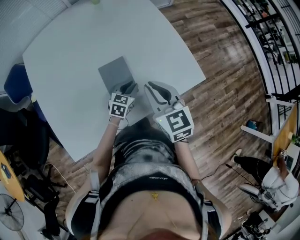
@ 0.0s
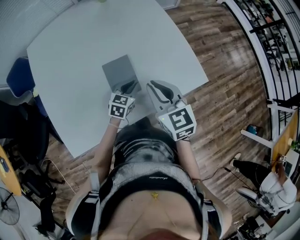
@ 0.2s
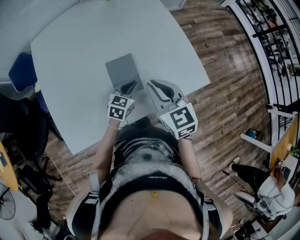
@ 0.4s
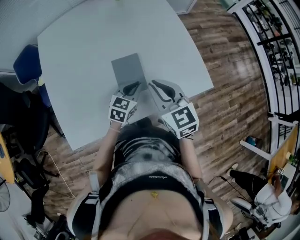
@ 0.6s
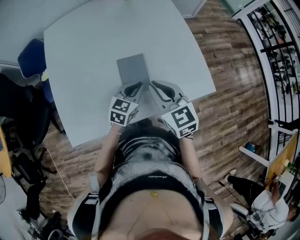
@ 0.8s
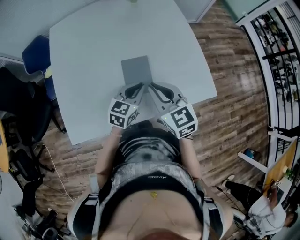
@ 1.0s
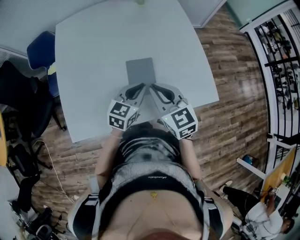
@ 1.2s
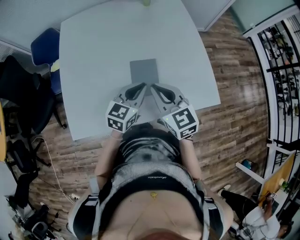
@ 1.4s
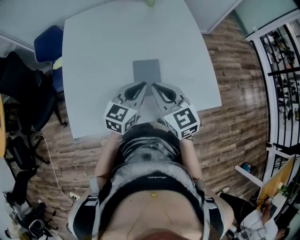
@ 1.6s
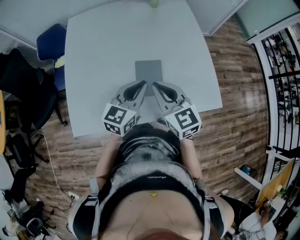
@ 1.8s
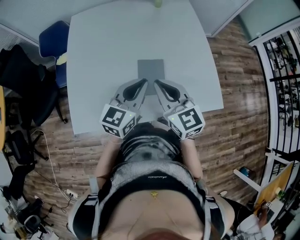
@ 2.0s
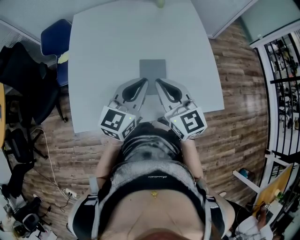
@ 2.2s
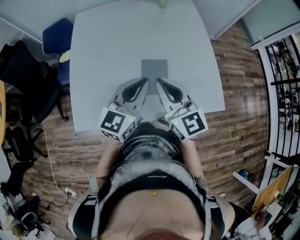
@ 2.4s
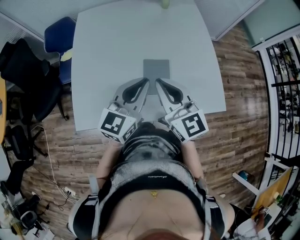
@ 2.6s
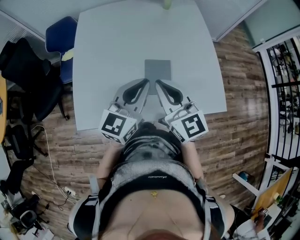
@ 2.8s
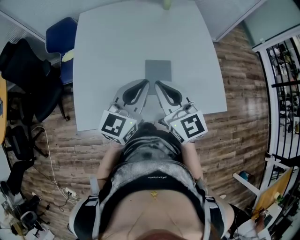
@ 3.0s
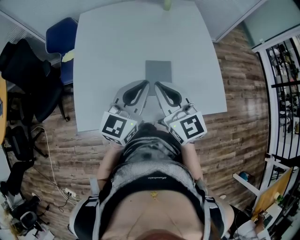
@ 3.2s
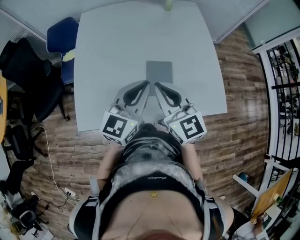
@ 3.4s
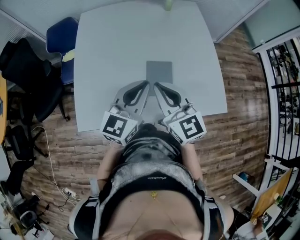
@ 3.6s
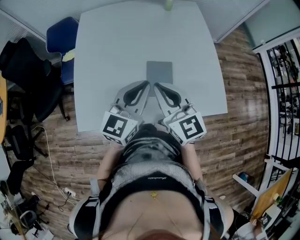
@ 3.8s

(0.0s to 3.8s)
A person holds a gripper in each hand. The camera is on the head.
0.0s - 1.2s: The left gripper shifts about 15 cm upward and to the left, and turns by some 20 degrees. Meanwhile the right gripper heads to the left, covering some 10 cm.
1.2s - 2.6s: The left gripper travels upward and to the left by roughly 15 cm, and turns by about 20 degrees. Meanwhile the right gripper is displaced upward and to the left by approximately 10 cm.
2.6s - 3.8s: There are only small adjustments of the grippers.

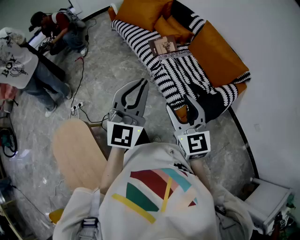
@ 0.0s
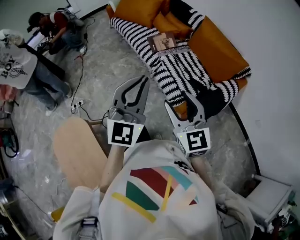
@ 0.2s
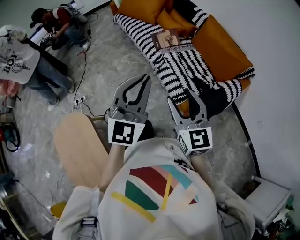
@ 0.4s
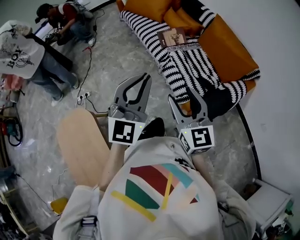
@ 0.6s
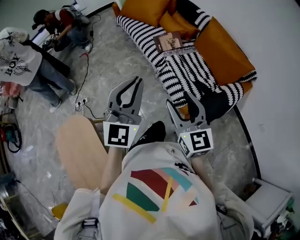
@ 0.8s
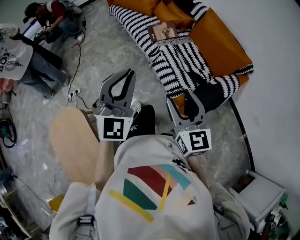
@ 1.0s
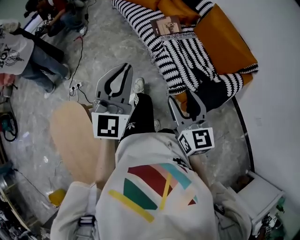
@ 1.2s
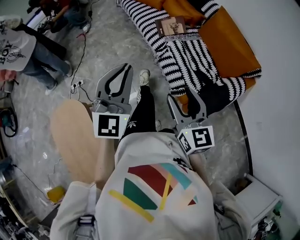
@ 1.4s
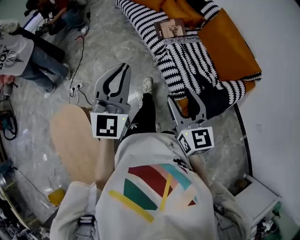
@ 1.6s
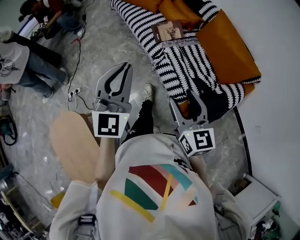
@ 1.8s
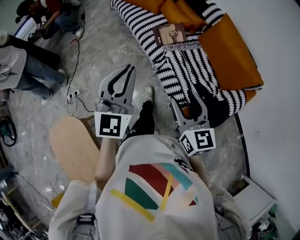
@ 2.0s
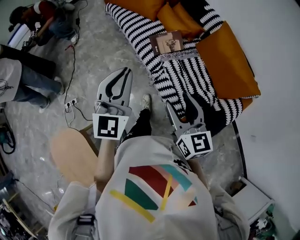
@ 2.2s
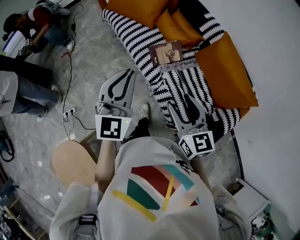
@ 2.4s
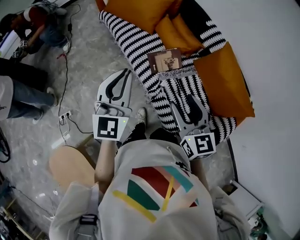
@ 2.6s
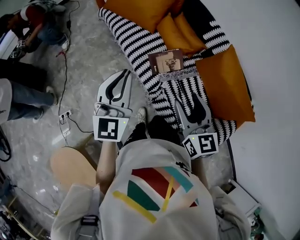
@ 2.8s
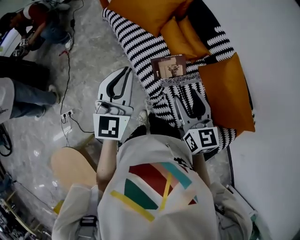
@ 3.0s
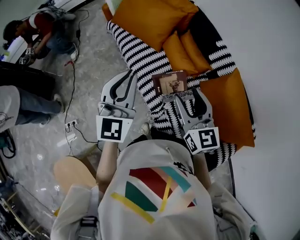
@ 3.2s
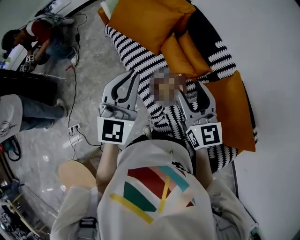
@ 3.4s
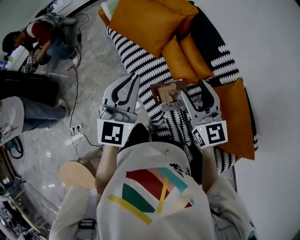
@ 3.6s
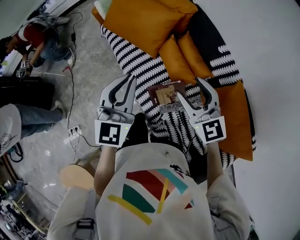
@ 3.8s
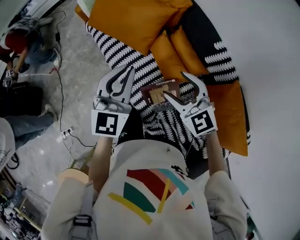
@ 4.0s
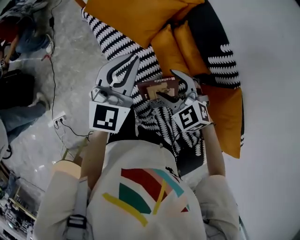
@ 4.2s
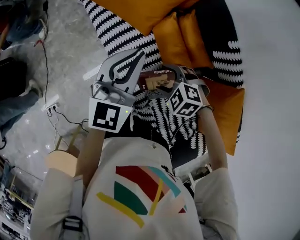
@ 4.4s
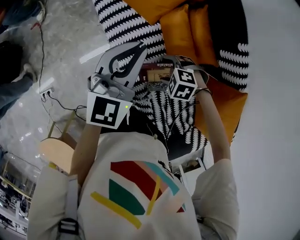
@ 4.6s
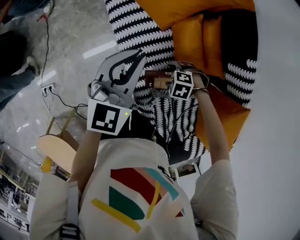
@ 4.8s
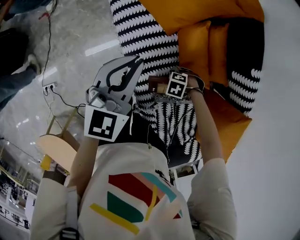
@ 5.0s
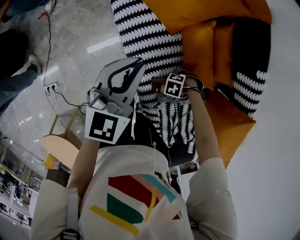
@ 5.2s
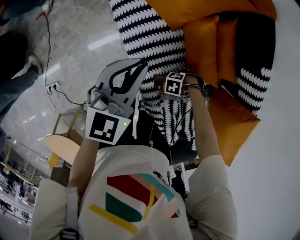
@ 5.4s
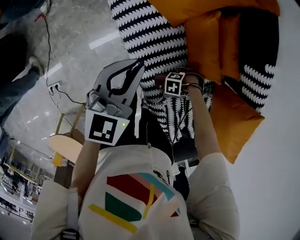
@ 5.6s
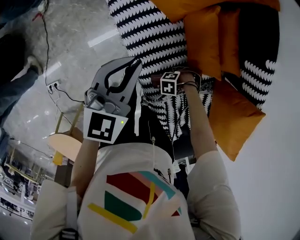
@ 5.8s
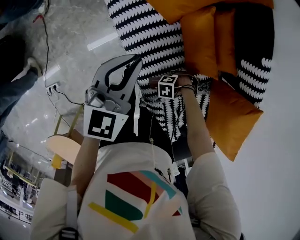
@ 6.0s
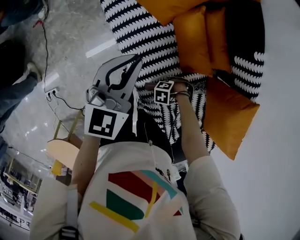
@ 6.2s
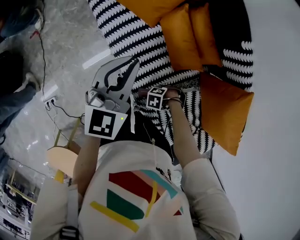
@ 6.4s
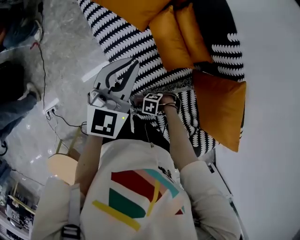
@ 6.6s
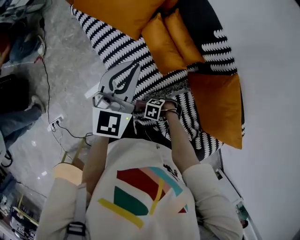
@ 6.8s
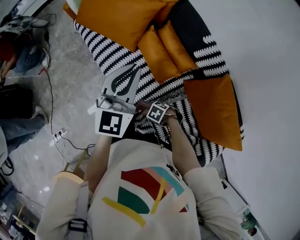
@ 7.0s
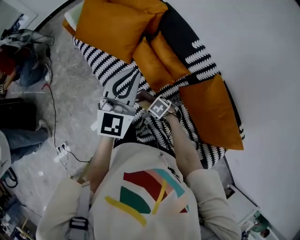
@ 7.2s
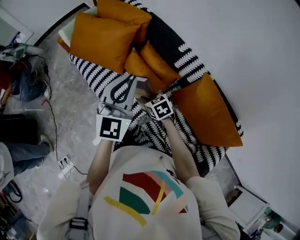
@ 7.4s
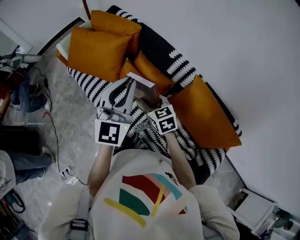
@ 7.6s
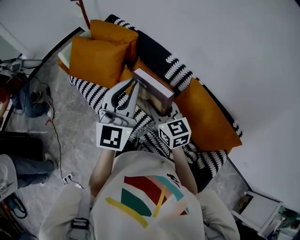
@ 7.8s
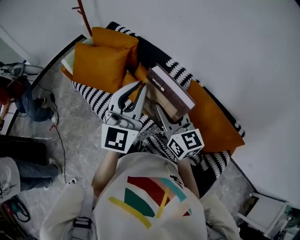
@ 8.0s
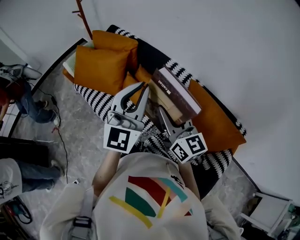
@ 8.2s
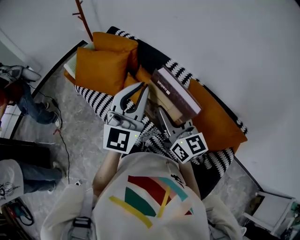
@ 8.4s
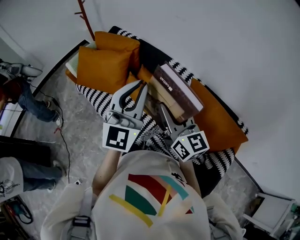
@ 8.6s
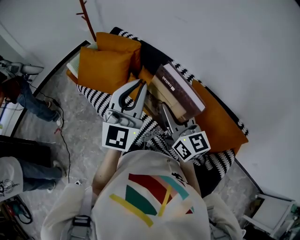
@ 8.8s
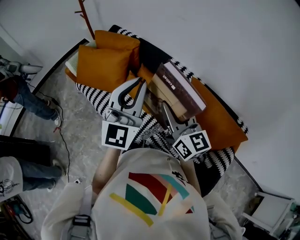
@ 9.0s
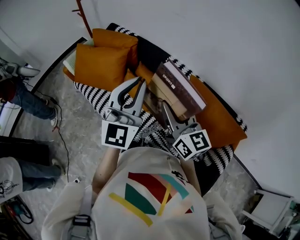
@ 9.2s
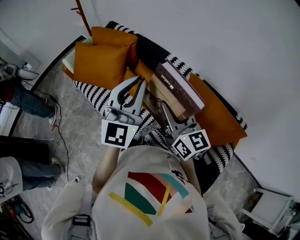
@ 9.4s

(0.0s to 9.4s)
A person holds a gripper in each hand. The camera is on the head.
0.0s - 1.6s: Both grippers travel together forward, roughly 5 cm.
1.6s - 3.2s: Both grippers are carried forward, roughly 50 cm.
3.2s - 4.8s: The left gripper shifts by approximately 30 cm, and rotates about 20 degrees. The right gripper is displaced downward by roughly 40 cm, and points its fingers some 60 degrees further downward.
4.8s - 6.2s: The right gripper moves about 15 cm, rotates approximately 20 degrees, and closes its fingers.
6.2s - 7.8s: The left gripper is displaced upward by roughly 30 cm, and angles its fingers upward, by roughly 30 degrees; the right gripper shifts roughly 50 cm upward, and tips its fingers upward by about 50 degrees.
7.8s - 9.4s: The right gripper is displaced upward, backward and to the right by about 10 cm, and changes its angle by roughly 20 degrees, while the left gripper moves about 5 cm.

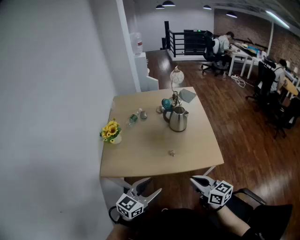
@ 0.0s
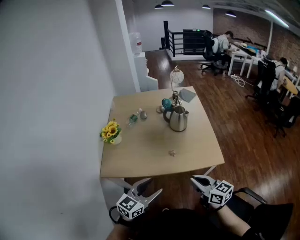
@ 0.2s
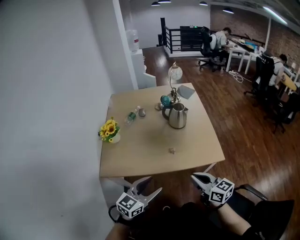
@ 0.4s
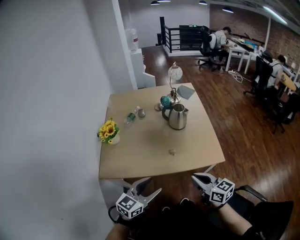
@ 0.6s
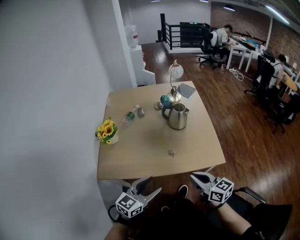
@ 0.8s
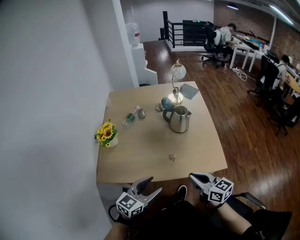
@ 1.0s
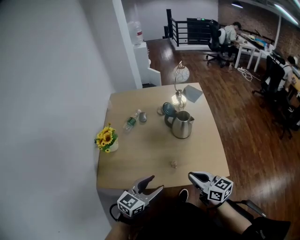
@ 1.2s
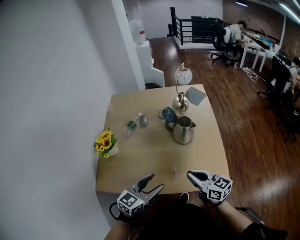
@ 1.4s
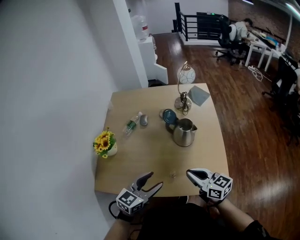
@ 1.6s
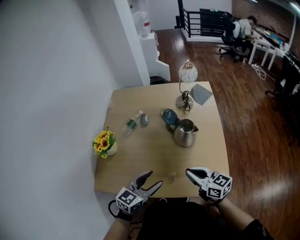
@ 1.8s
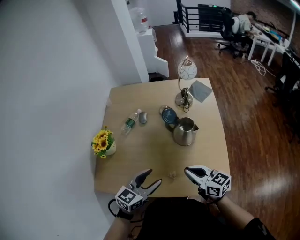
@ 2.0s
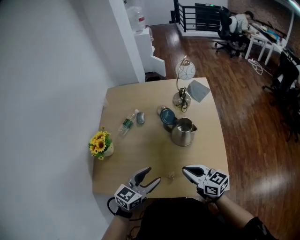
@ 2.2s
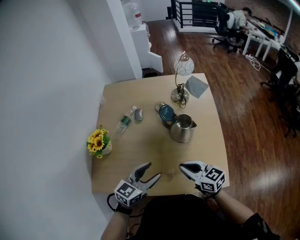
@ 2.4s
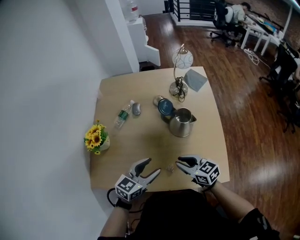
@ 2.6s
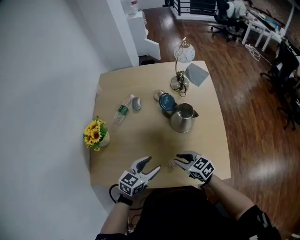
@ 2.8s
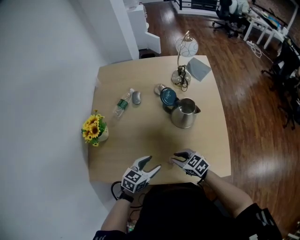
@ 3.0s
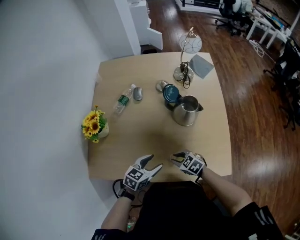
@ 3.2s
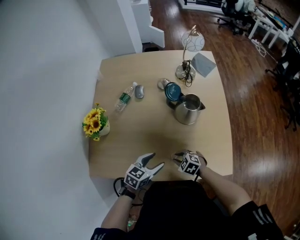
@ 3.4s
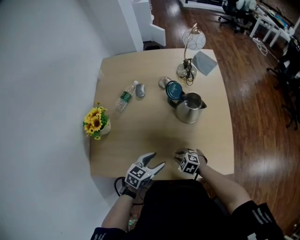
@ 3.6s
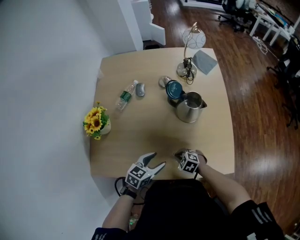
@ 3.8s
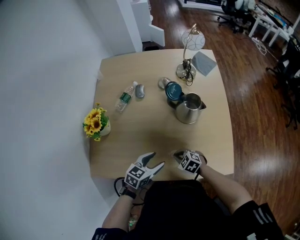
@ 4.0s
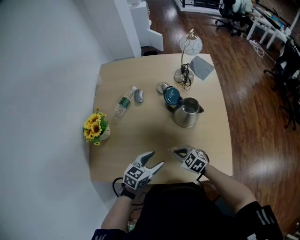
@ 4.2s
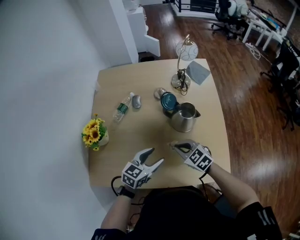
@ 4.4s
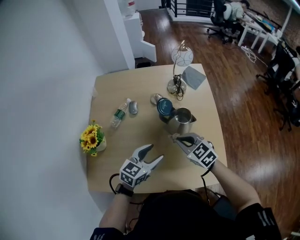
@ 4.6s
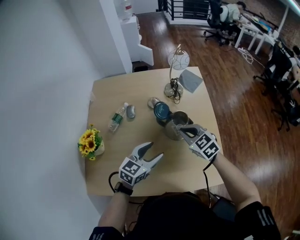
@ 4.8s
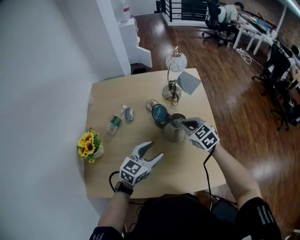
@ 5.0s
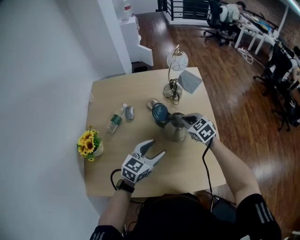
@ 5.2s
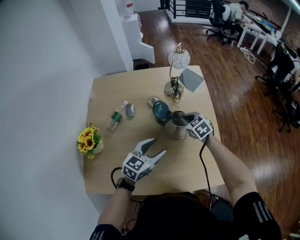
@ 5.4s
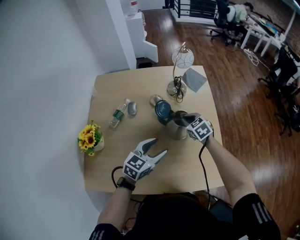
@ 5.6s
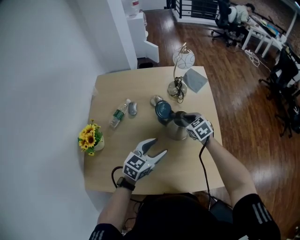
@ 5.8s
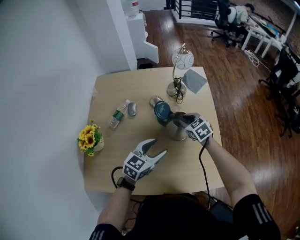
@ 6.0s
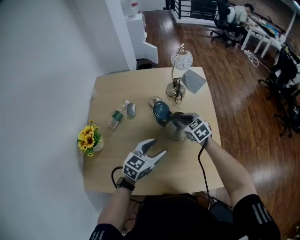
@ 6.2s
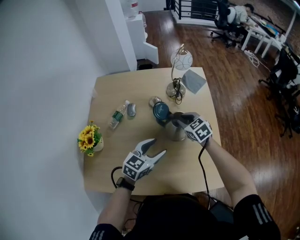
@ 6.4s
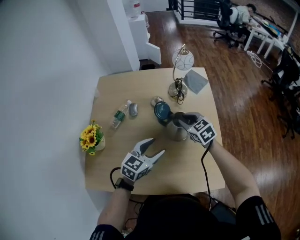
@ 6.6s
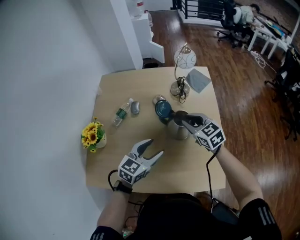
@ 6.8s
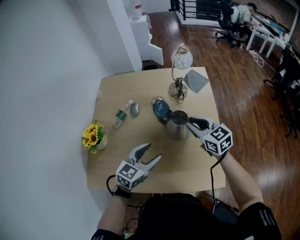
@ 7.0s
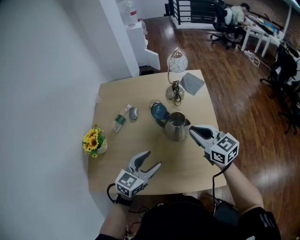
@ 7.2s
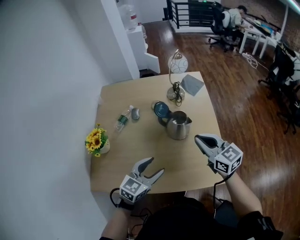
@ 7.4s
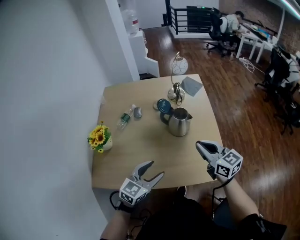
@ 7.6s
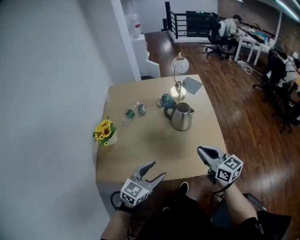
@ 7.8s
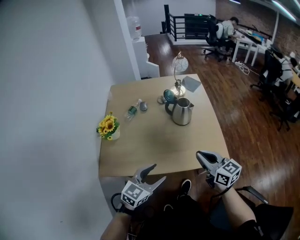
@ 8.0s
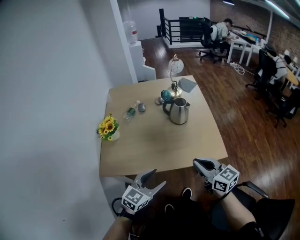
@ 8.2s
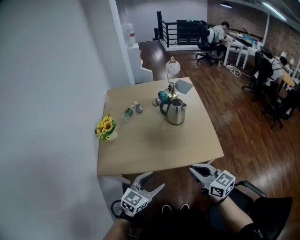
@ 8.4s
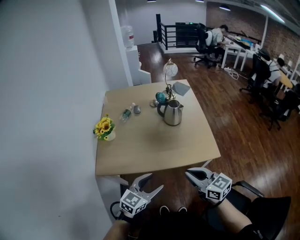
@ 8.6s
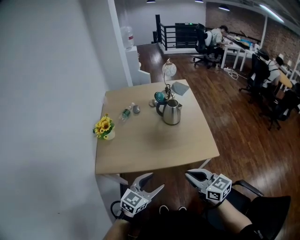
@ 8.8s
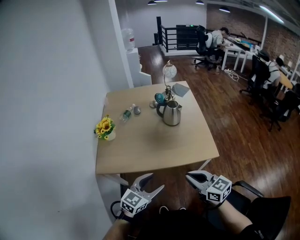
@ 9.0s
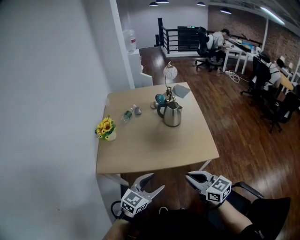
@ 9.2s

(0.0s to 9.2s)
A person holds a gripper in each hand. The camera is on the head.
0.0s - 1.6s: Both grippers move forward, some 25 cm.
1.6s - 3.0s: The two grippers go some 15 cm downward. The right gripper turns by roughly 30 degrees, and opens.
3.0s - 4.6s: Both grippers travel together upward and forward, some 15 cm. The right gripper closes up.
4.6s - 6.2s: The right gripper is displaced forward by approximately 15 cm, and opens its fingers. The left gripper changes place by about 5 cm.
6.2s - 7.6s: The left gripper goes roughly 20 cm backward. Meanwhile the right gripper moves backward and upward, about 30 cm, tips its fingers upward by about 30 degrees, and closes up.
7.6s - 9.2s: The two grippers go some 30 cm backward.

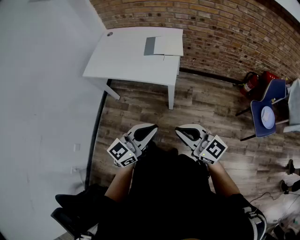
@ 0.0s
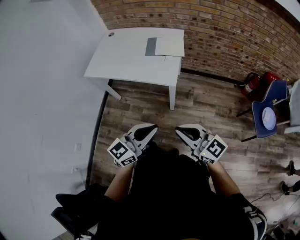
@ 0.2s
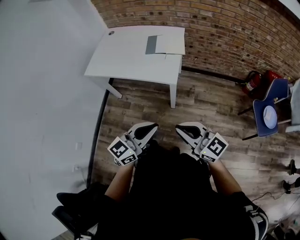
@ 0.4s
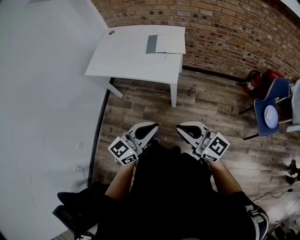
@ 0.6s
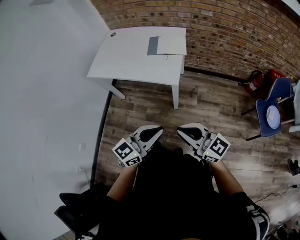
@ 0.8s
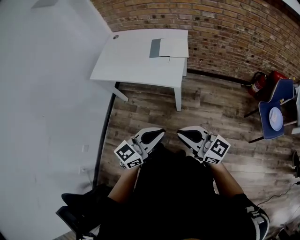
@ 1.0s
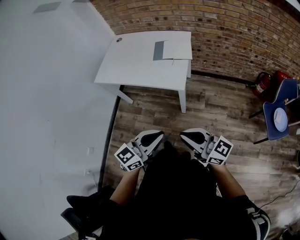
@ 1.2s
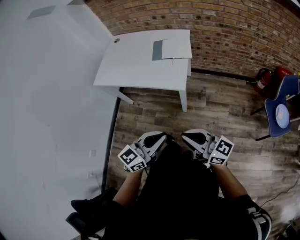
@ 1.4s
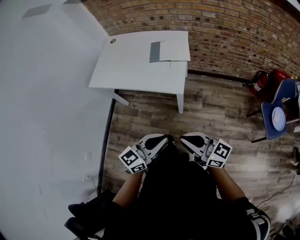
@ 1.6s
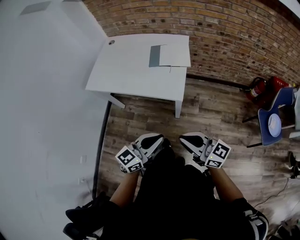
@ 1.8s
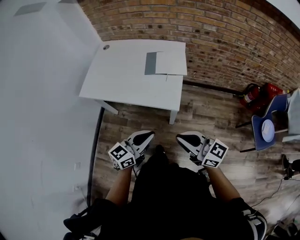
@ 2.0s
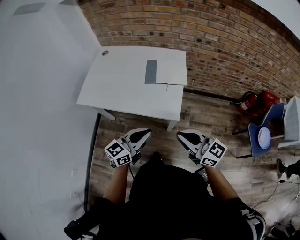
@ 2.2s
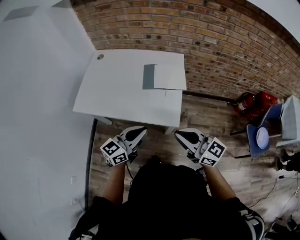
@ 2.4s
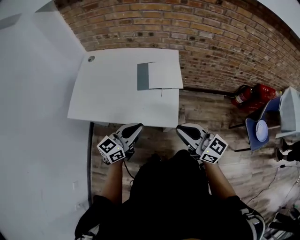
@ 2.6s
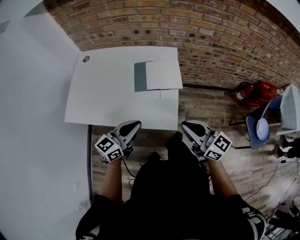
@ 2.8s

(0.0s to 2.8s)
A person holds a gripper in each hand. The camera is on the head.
0.0s - 1.4s: The grippers move only a little.
1.4s - 2.8s: The two grippers go some 35 cm forward.
